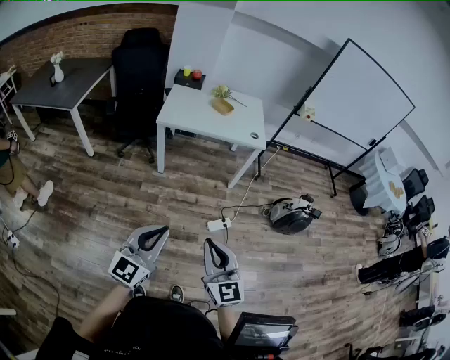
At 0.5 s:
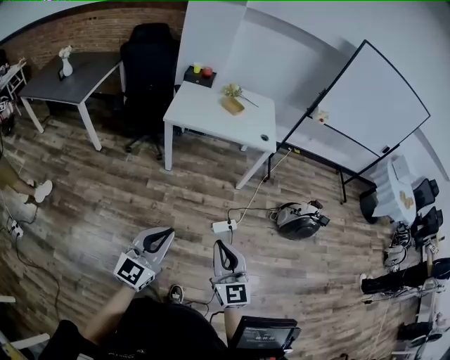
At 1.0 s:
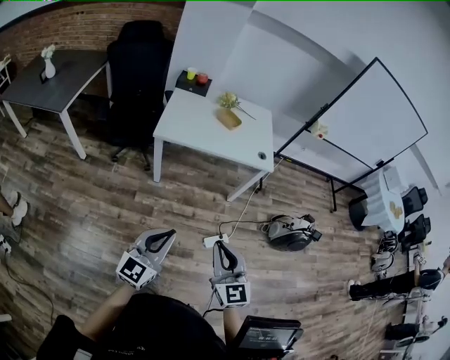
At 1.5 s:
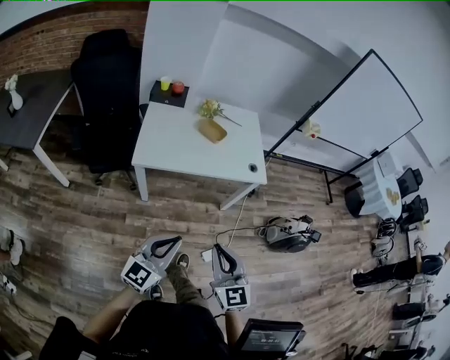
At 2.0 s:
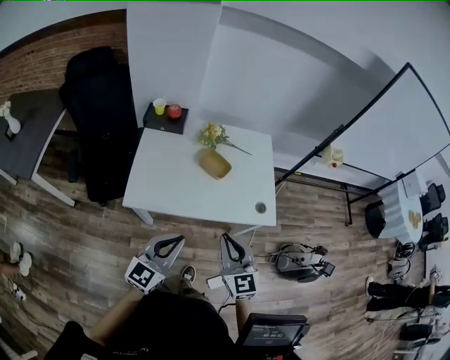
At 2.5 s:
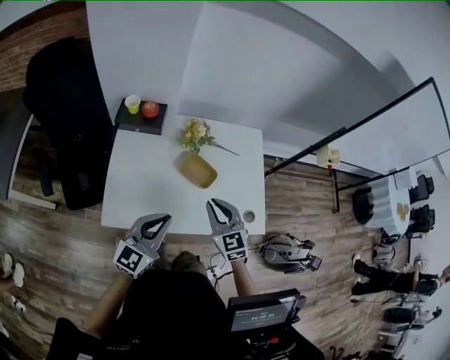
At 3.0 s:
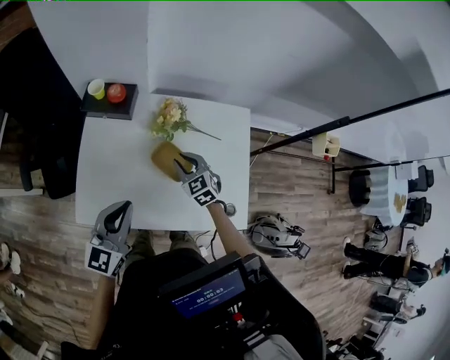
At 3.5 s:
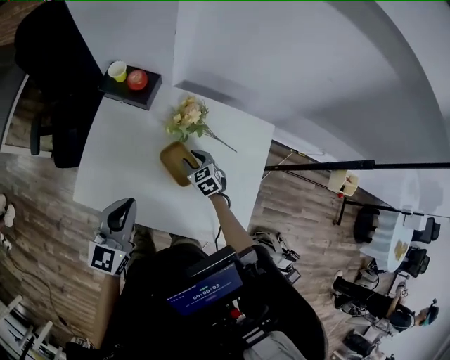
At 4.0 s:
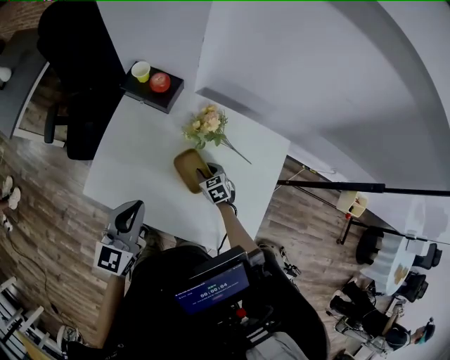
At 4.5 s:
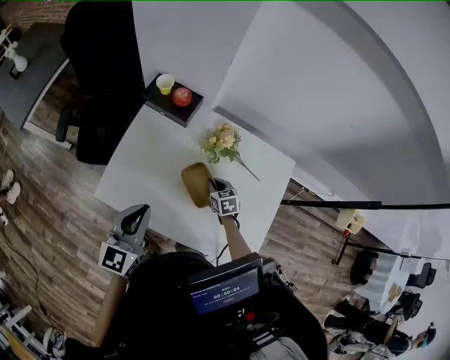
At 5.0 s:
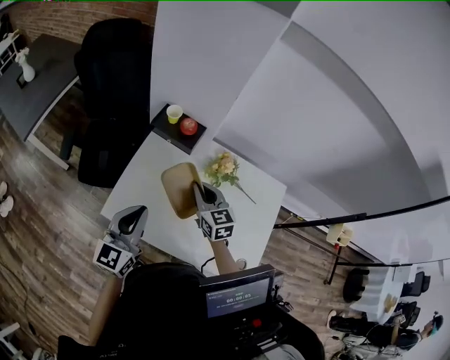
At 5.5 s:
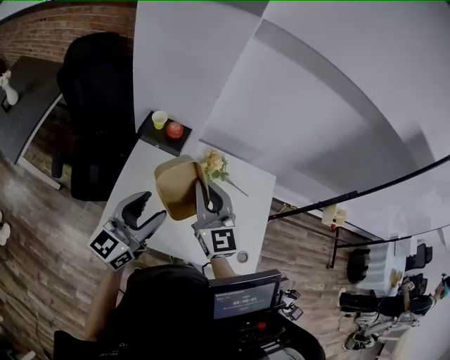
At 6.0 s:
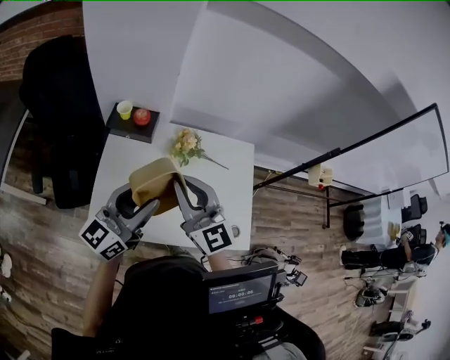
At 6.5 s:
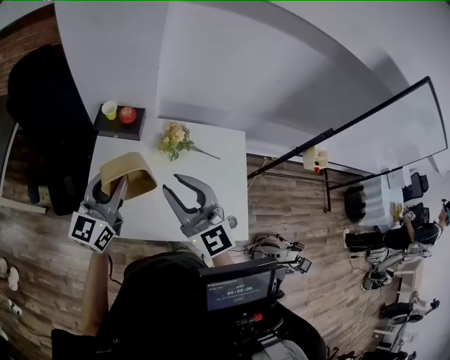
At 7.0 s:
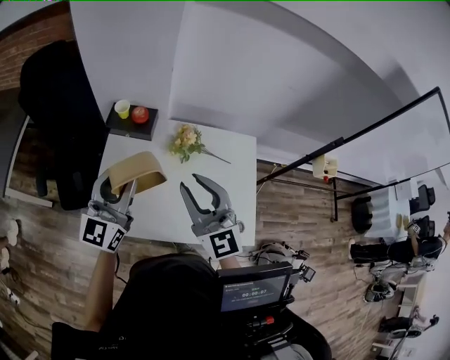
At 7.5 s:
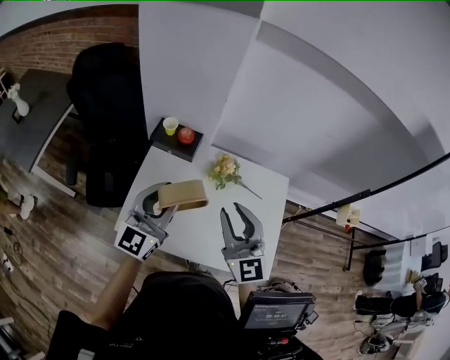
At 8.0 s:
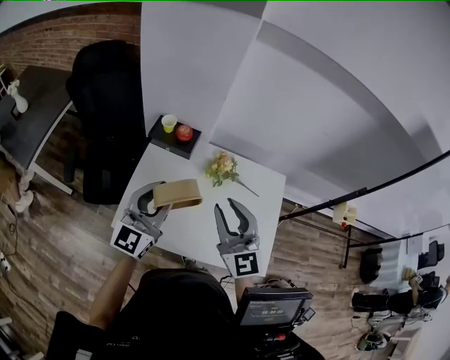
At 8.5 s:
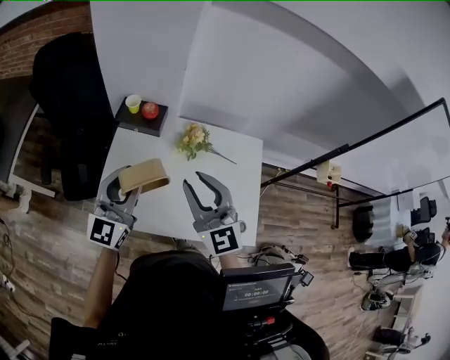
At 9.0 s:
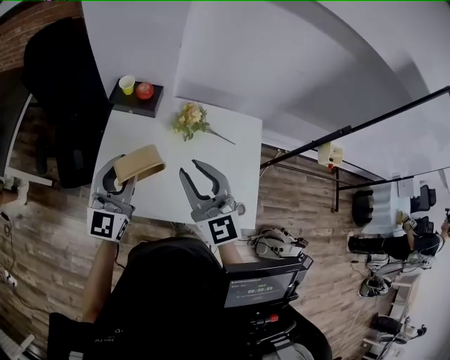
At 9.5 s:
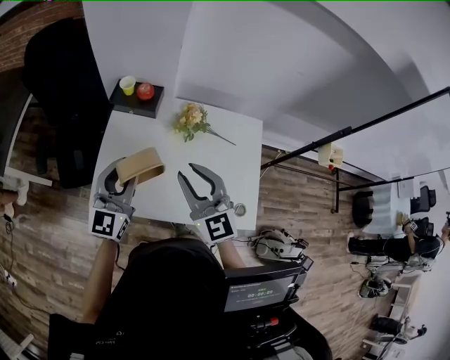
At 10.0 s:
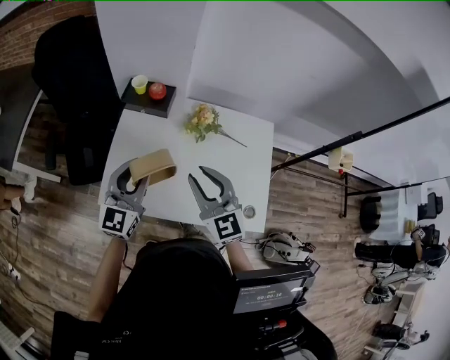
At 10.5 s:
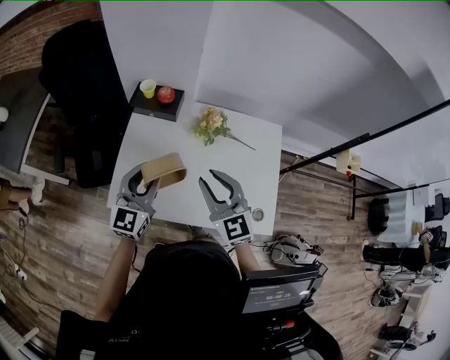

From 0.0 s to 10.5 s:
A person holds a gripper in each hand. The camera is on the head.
From 0.0 s to 2.0 s: The two grippers travel together, forward, roughly 60 cm.
From 2.0 s to 4.0 s: The right gripper changes place by some 50 cm, tips its fingers downward by about 40 degrees, and opens up. Meanwhile the left gripper ends up about 30 cm from where it was, and swivels some 30 degrees.
From 4.0 s to 6.5 s: The left gripper heads upward, forward and to the left, covering about 15 cm, turns by roughly 20 degrees, and opens up; the right gripper moves upward, approximately 40 cm, tips its fingers upward by some 50 degrees, and closes, then reopens.
From 6.5 s to 8.5 s: The grippers make only small movements.
From 8.5 s to 10.5 s: Both grippers move downward, some 10 cm.

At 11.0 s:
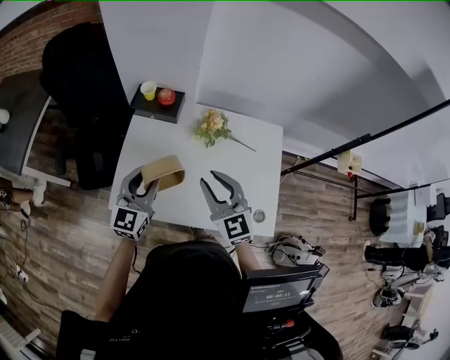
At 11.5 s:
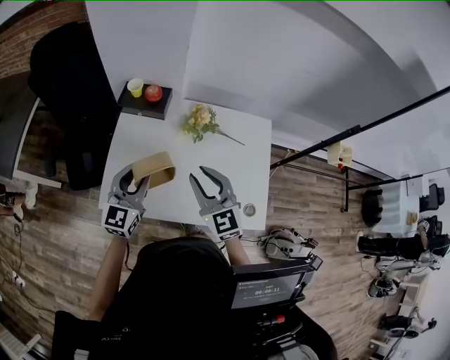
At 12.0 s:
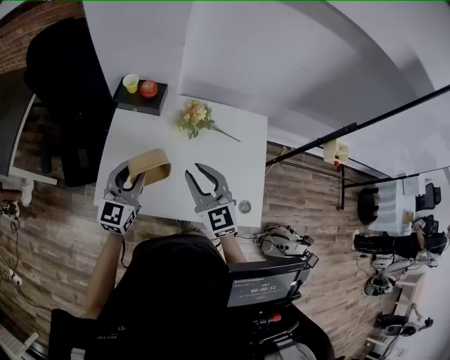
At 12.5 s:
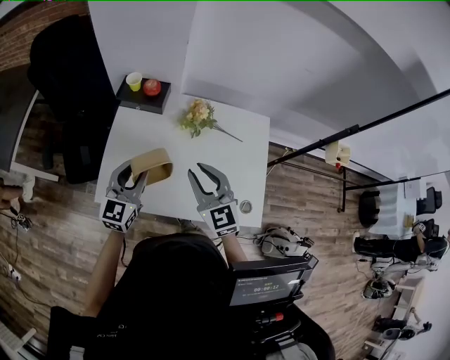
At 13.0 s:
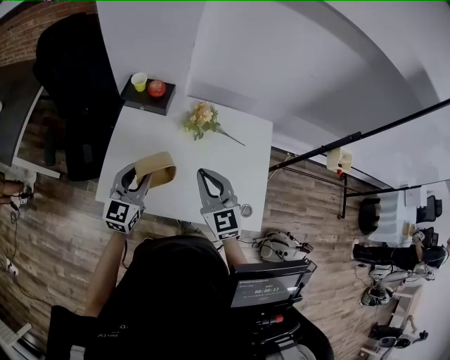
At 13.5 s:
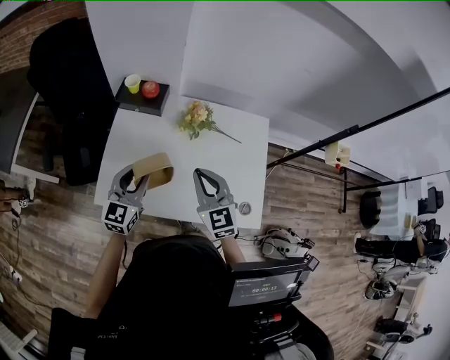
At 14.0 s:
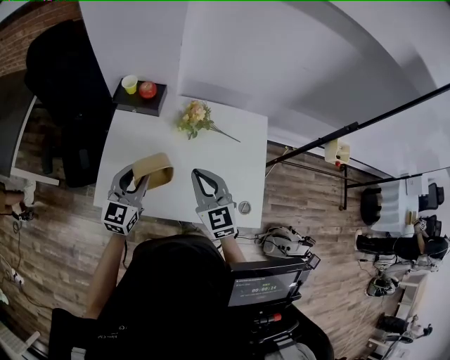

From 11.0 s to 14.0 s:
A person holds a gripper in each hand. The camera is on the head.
From 11.0 s to 12.5 s: The grippers stay close to where they were, moving slightly.
From 12.5 s to 14.0 s: The right gripper closes.

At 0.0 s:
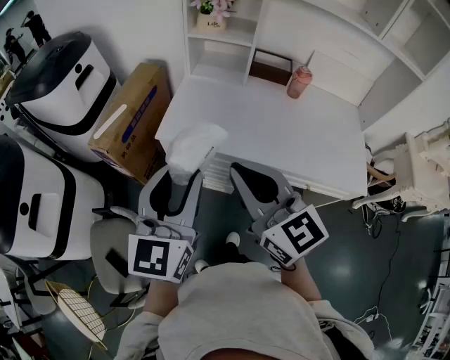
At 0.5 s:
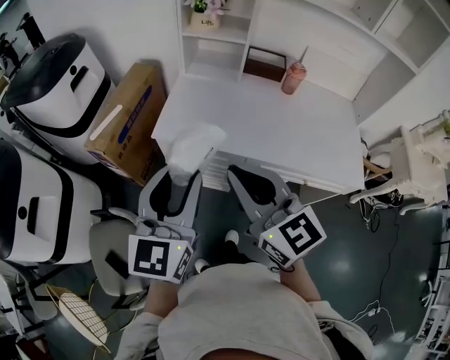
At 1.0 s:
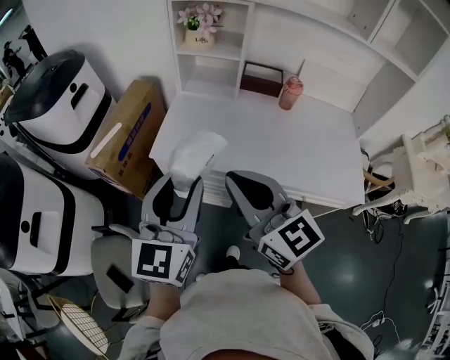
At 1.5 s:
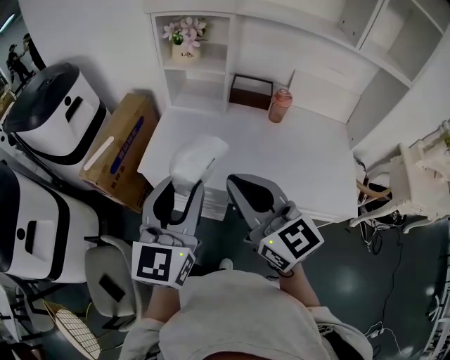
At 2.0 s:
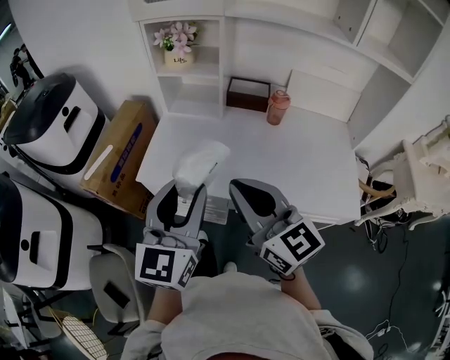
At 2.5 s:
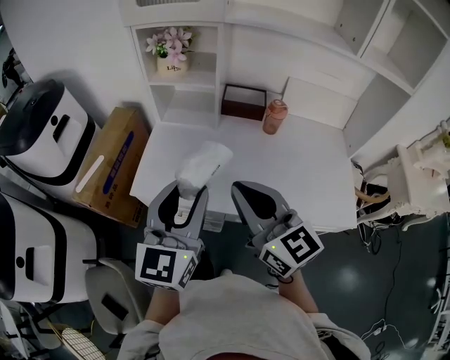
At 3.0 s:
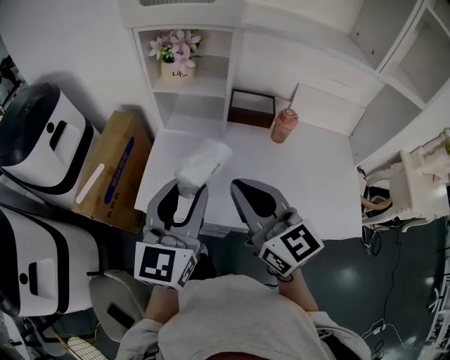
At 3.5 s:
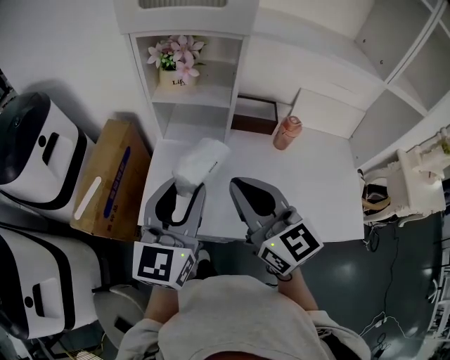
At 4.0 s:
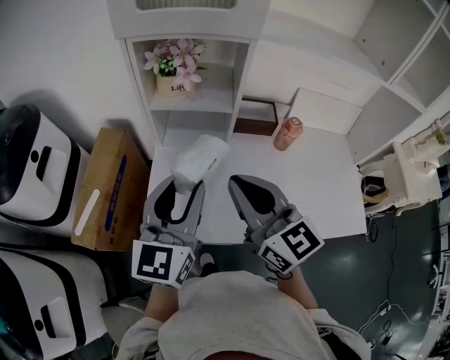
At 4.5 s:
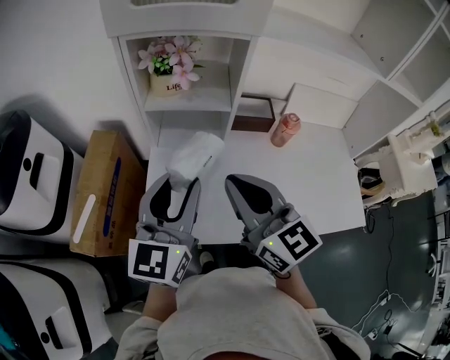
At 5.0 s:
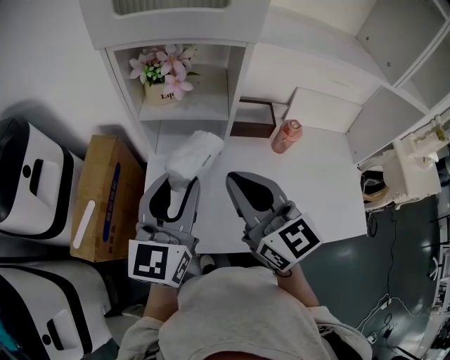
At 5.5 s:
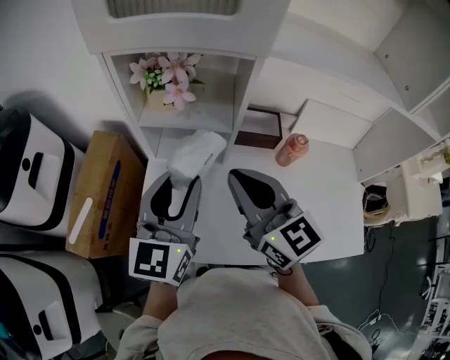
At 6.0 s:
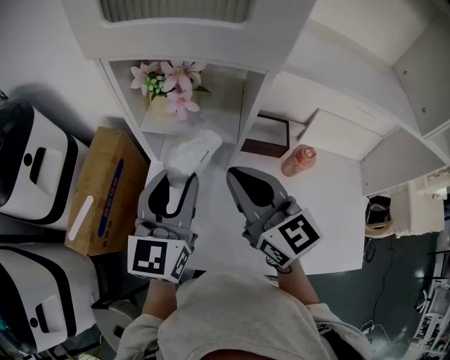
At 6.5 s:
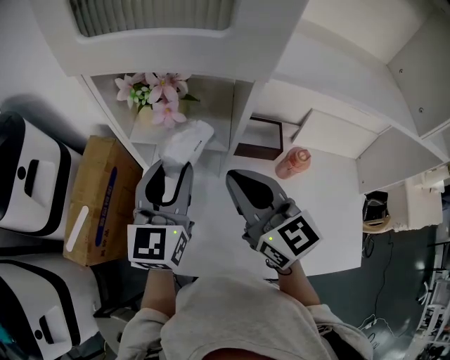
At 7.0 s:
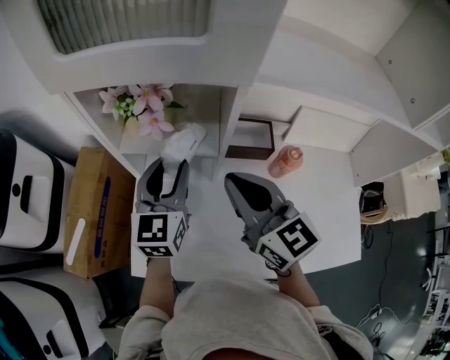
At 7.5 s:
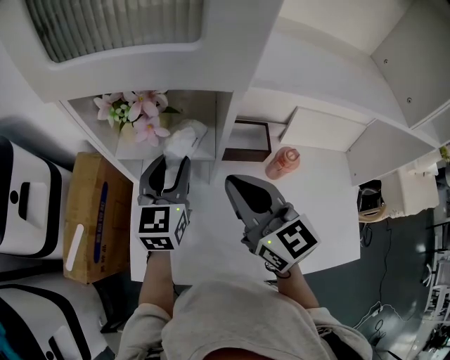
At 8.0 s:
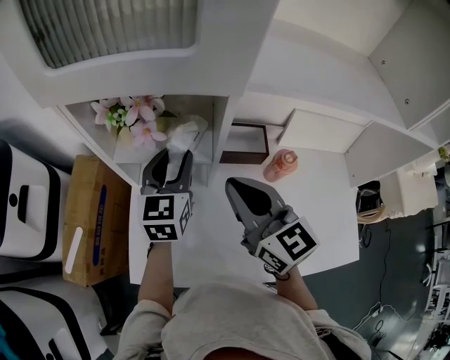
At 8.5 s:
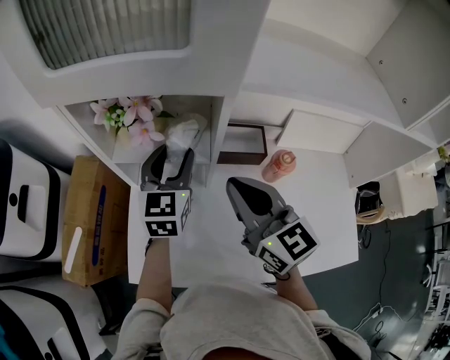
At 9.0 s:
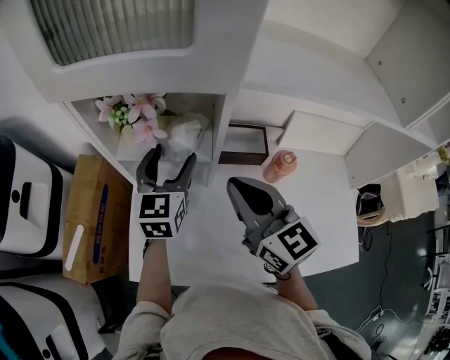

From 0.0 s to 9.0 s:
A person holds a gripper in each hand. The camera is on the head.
From 0.0 s to 2.0 s: The grippers both shift to the right and forward by roughly 15 cm.
From 2.0 s to 4.5 s: Both grippers travel together forward, approximately 25 cm.
From 4.5 s to 7.0 s: The right gripper moves forward and to the right, about 20 cm; the left gripper shifts about 20 cm forward.
From 7.0 s to 9.0 s: The left gripper opens its fingers.

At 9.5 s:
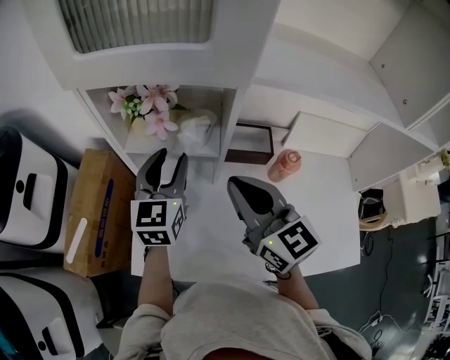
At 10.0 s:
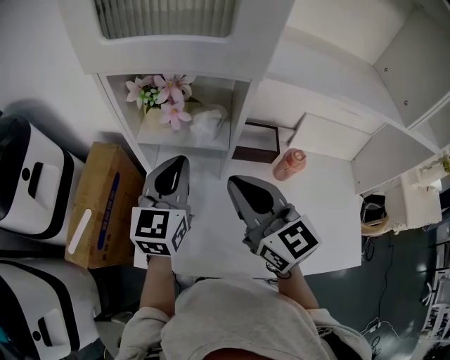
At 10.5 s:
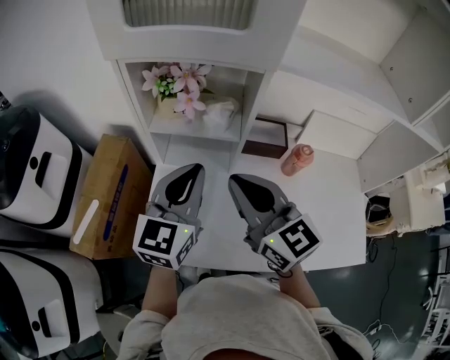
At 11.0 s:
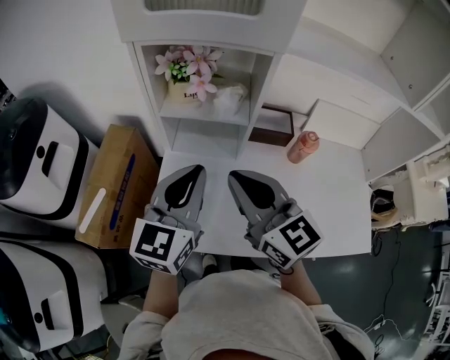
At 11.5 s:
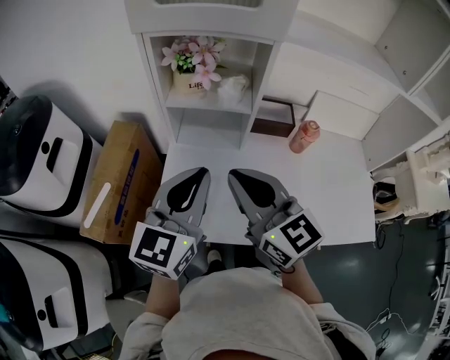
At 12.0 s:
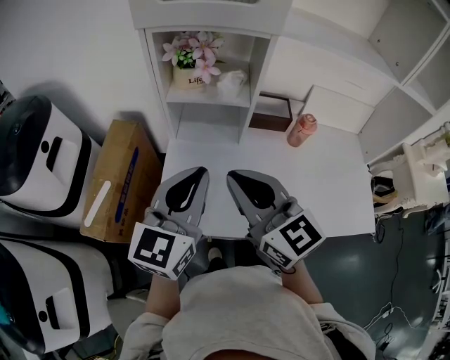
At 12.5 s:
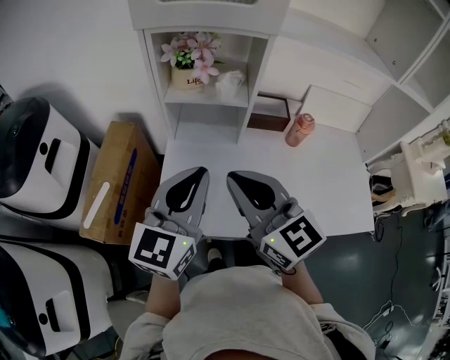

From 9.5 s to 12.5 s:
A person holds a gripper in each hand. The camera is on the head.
From 9.5 s to 11.0 s: The right gripper moves to the left and backward, some 10 cm. Meanwhile the left gripper goes roughly 15 cm backward, and closes its fingers.
From 11.0 s to 12.5 s: The grippers both shift backward by roughly 5 cm.

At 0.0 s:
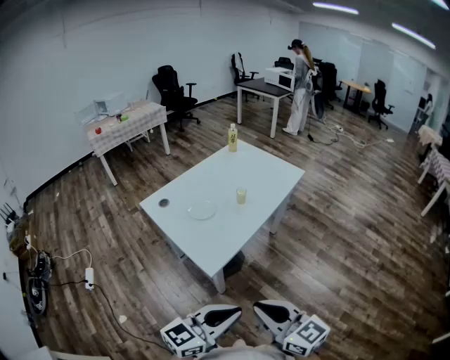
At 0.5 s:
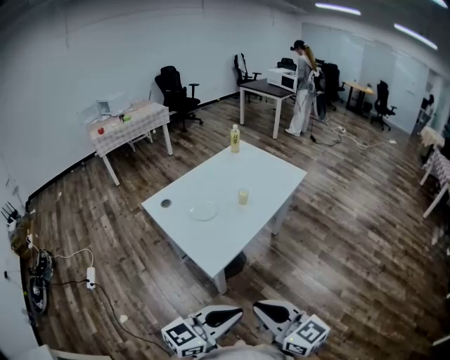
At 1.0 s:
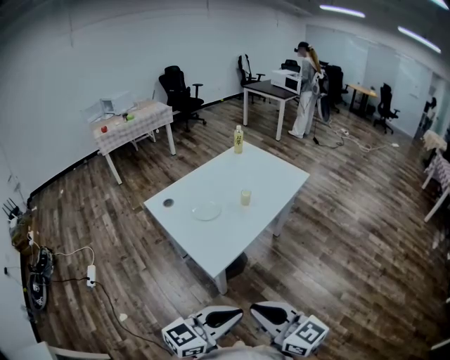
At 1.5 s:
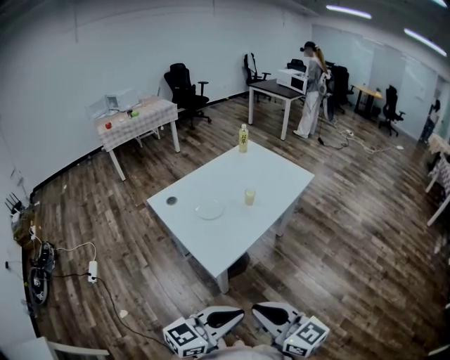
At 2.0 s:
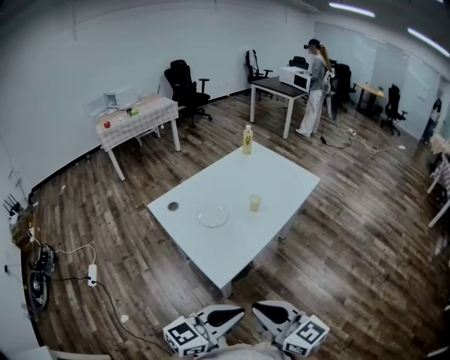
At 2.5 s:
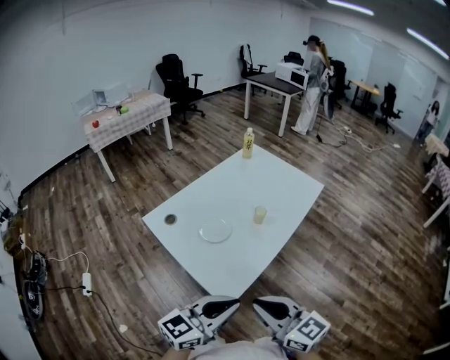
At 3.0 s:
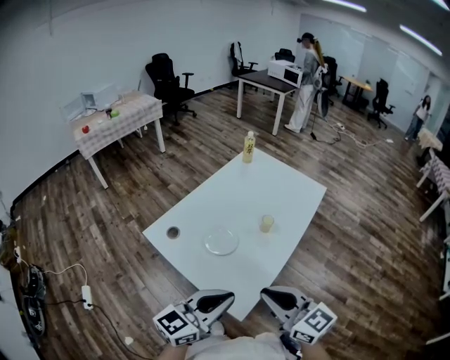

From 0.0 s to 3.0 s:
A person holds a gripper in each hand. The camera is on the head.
From 0.0 s to 1.5 s: The grippers move only a little.
From 1.5 s to 3.0 s: The two grippers go roughly 25 cm forward and to the left.
